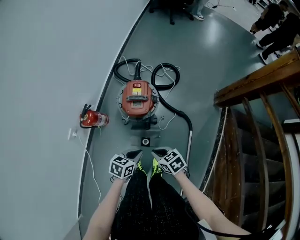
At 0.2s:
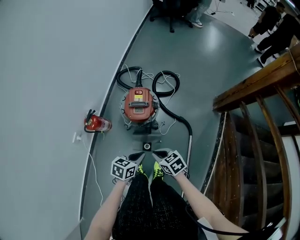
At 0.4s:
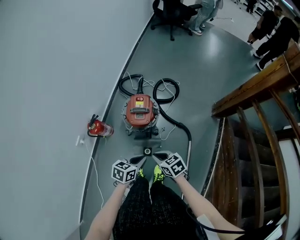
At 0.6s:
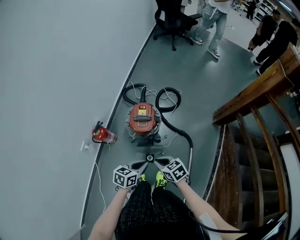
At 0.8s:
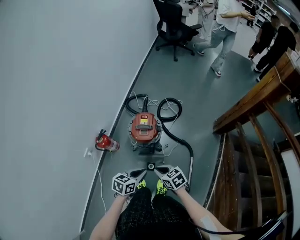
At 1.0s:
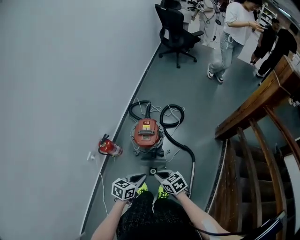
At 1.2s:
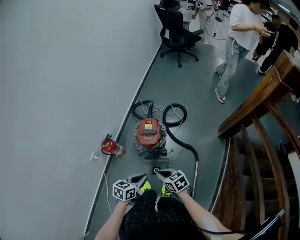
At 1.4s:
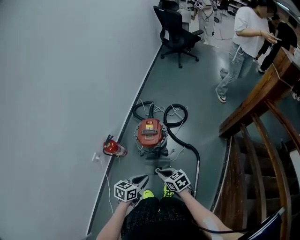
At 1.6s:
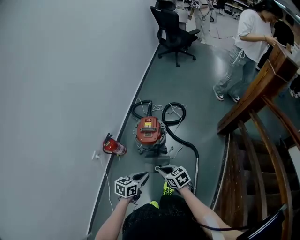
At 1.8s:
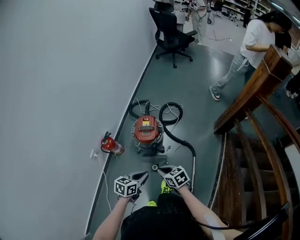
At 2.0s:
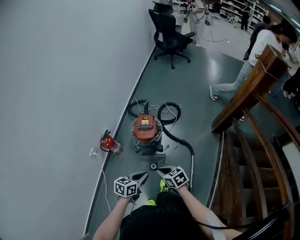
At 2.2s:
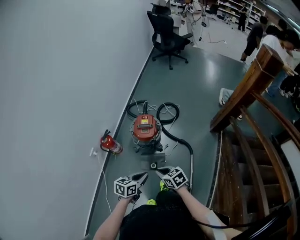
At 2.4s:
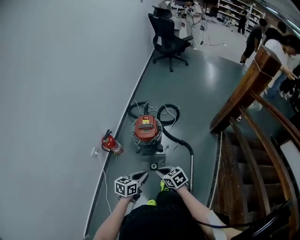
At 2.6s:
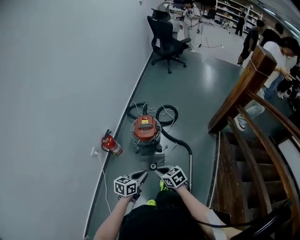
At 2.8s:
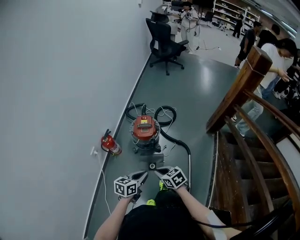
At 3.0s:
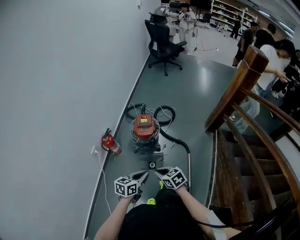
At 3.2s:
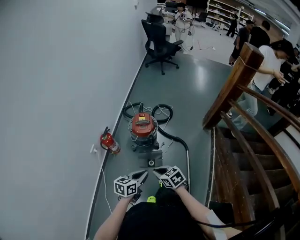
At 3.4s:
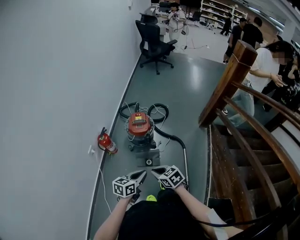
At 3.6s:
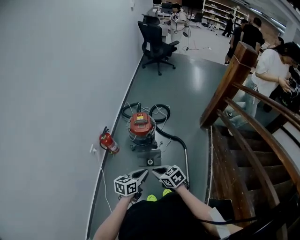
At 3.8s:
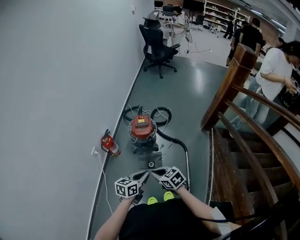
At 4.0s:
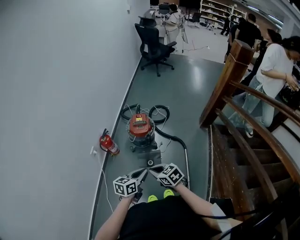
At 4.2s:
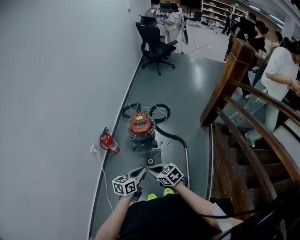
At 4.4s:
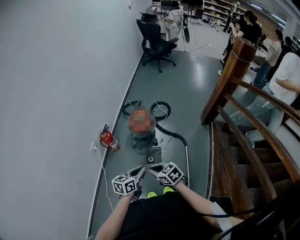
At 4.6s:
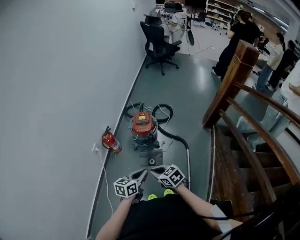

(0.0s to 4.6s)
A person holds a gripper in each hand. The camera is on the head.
0.0s - 1.6s: The grippers both shift upward by some 15 cm.
1.6s - 3.0s: The right gripper is displaced backward and to the left by approximately 15 cm; the left gripper goes some 10 cm backward.
3.0s - 4.6s: The left gripper ends up roughly 5 cm from where it was, while the right gripper is displaced backward by approximately 5 cm.

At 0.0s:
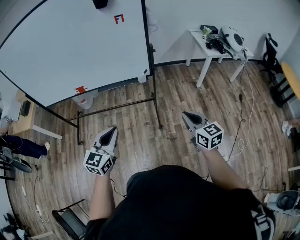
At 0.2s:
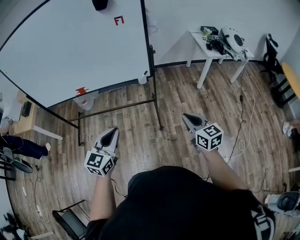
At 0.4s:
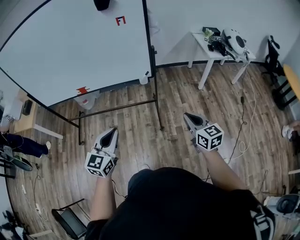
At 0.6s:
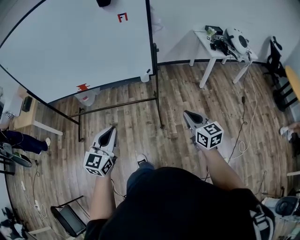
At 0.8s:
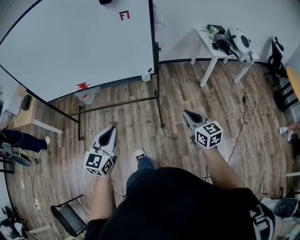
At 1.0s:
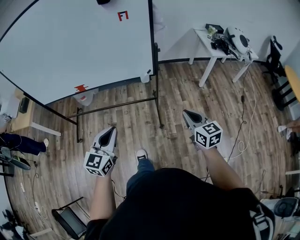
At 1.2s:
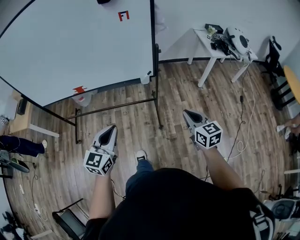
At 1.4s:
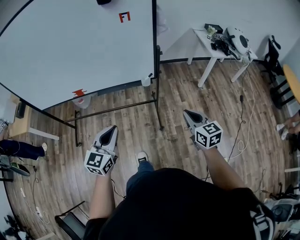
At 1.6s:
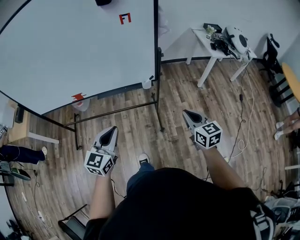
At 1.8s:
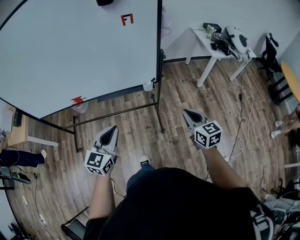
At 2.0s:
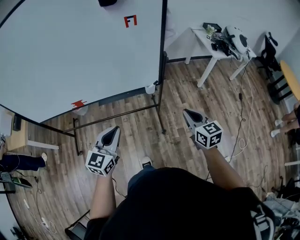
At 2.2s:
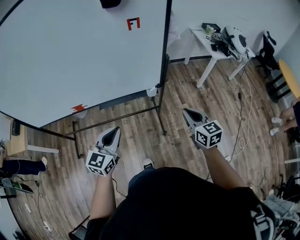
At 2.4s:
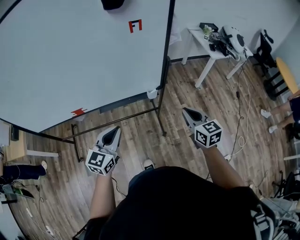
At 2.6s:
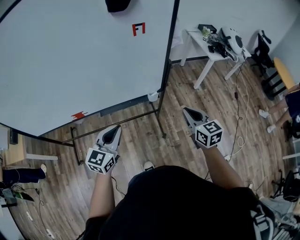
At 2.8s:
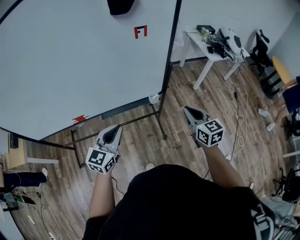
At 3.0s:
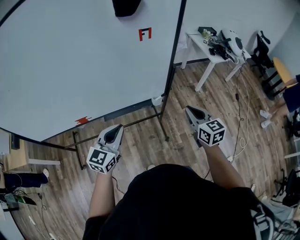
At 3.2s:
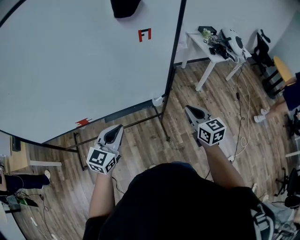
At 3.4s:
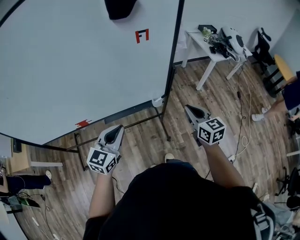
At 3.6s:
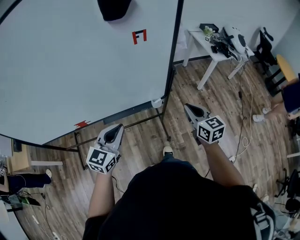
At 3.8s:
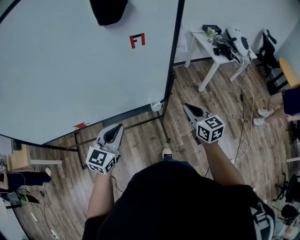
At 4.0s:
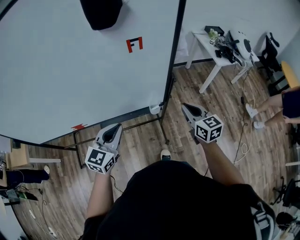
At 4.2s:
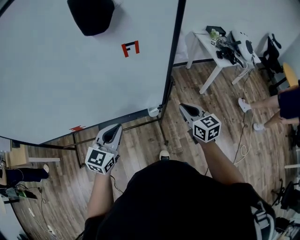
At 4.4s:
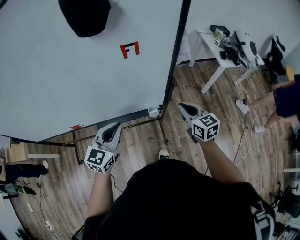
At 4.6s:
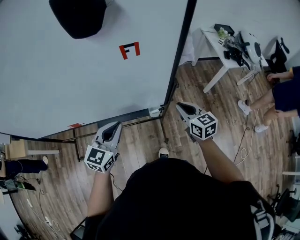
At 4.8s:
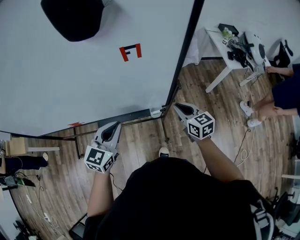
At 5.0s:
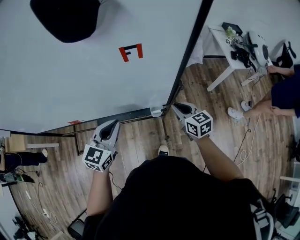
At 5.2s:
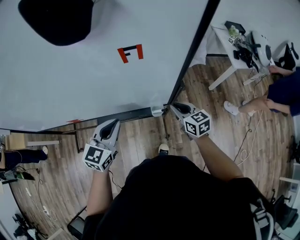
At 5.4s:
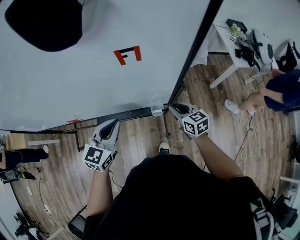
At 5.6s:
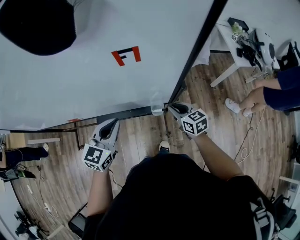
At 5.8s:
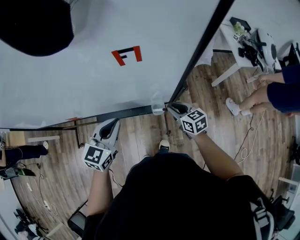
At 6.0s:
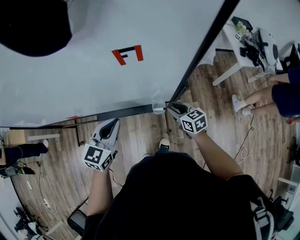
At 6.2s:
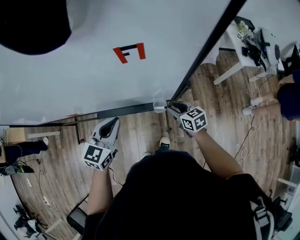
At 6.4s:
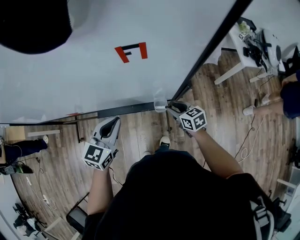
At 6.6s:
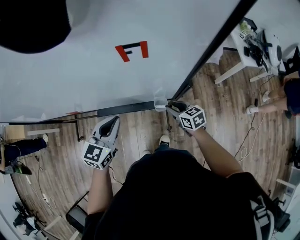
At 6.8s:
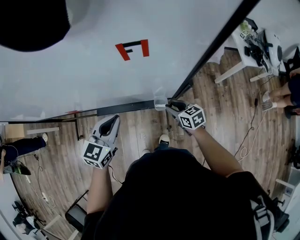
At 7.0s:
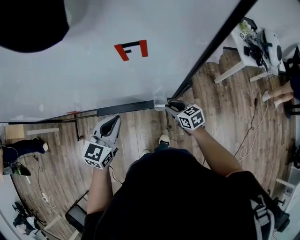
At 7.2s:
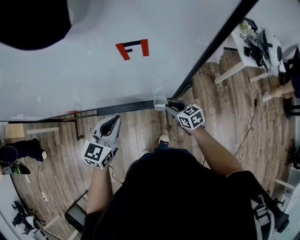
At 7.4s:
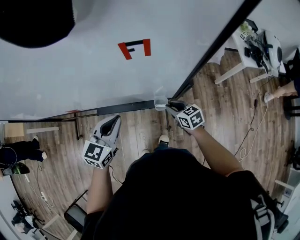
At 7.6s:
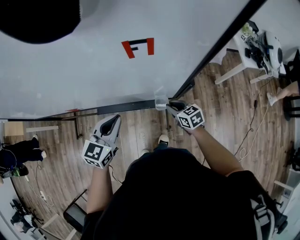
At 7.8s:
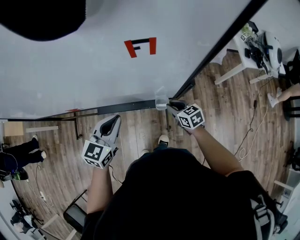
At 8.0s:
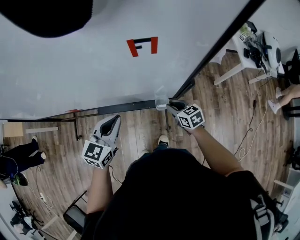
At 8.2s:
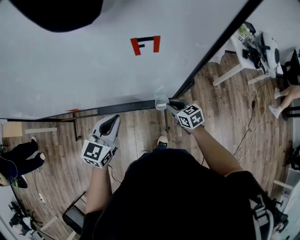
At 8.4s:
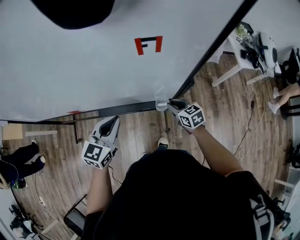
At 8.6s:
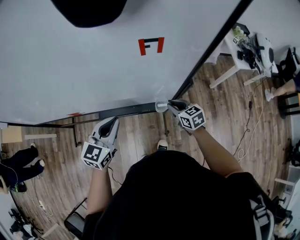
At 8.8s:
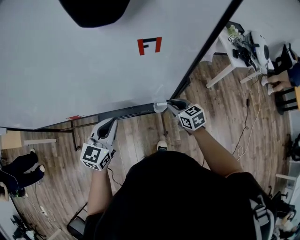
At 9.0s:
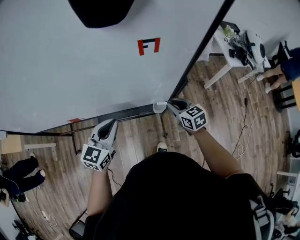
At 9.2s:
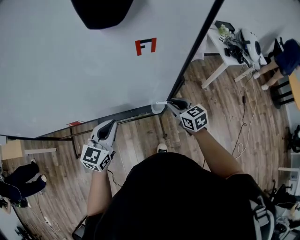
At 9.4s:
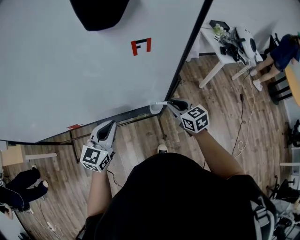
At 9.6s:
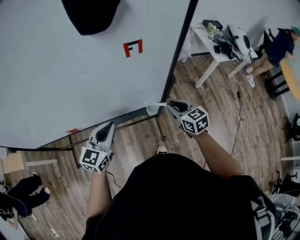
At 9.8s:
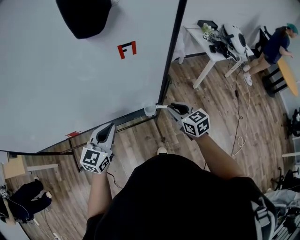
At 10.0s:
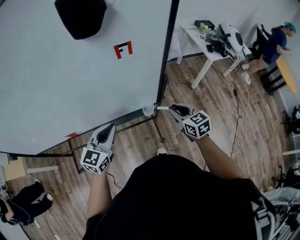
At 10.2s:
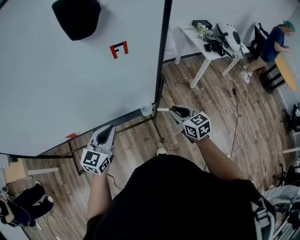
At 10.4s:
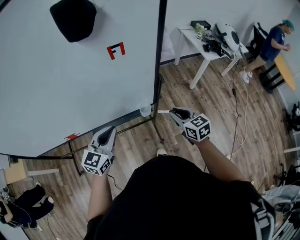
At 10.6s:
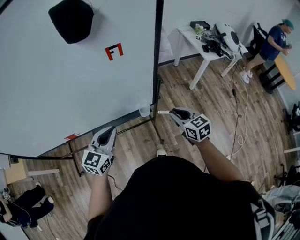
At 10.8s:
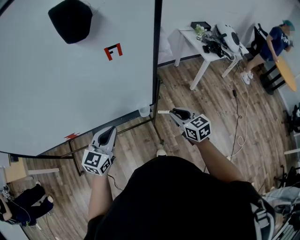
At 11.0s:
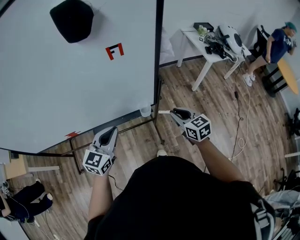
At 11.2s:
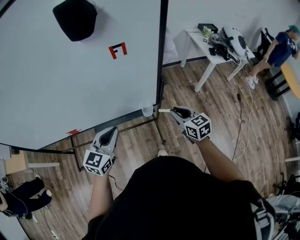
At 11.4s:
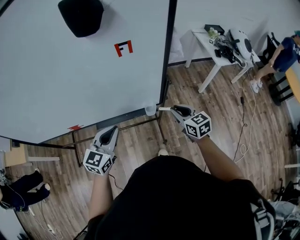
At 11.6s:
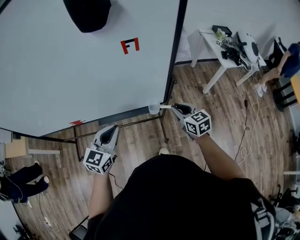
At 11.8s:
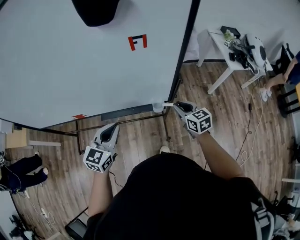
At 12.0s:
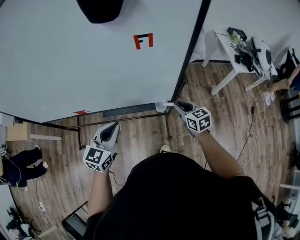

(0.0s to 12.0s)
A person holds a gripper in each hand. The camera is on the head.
0.0s - 1.6s: The left gripper heads forward and to the left, covering about 15 cm, while the right gripper goes some 10 cm forward.
1.6s - 3.0s: The grippers both shift forward and to the left by some 15 cm.
3.0s - 4.4s: The left gripper is displaced forward and to the right by about 15 cm. The right gripper moves forward, some 15 cm.
4.4s - 6.0s: The left gripper heads forward, covering approximately 5 cm, while the right gripper heads downward and forward, covering some 15 cm, turns by some 20 degrees, and opens.
6.0s - 7.6s: The grippers make only small movements.
7.6s - 9.0s: The right gripper heads upward, covering about 10 cm.
9.0s - 10.4s: The right gripper shifts some 15 cm backward, to the right and upward, while the left gripper shifts by roughly 5 cm.
10.4s - 12.0s: The right gripper goes some 10 cm forward and downward.

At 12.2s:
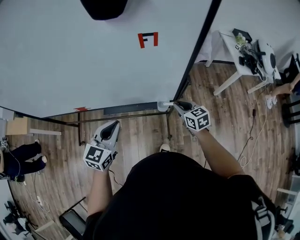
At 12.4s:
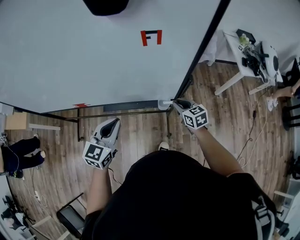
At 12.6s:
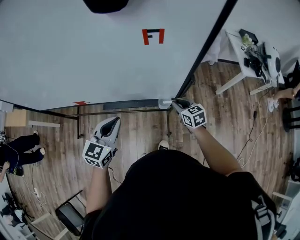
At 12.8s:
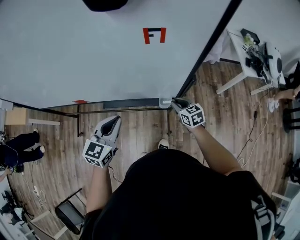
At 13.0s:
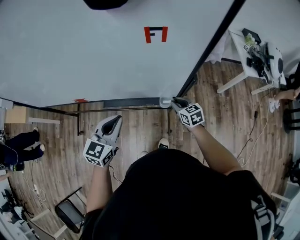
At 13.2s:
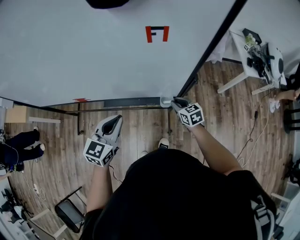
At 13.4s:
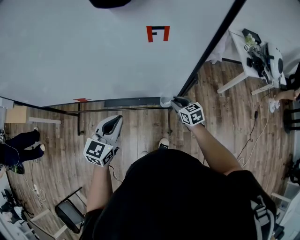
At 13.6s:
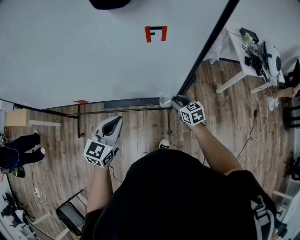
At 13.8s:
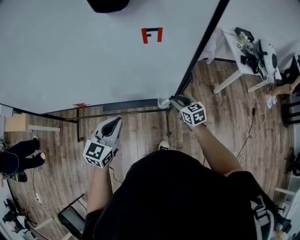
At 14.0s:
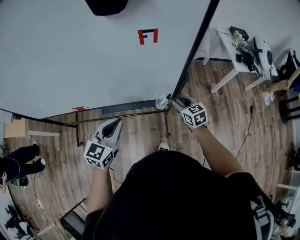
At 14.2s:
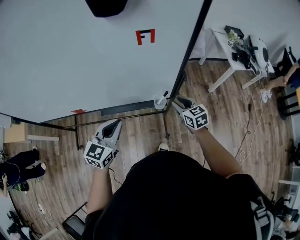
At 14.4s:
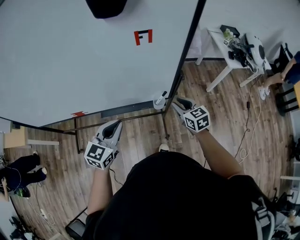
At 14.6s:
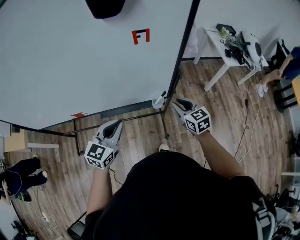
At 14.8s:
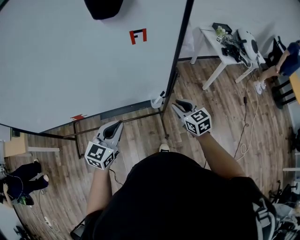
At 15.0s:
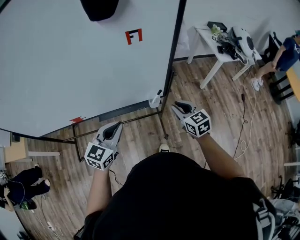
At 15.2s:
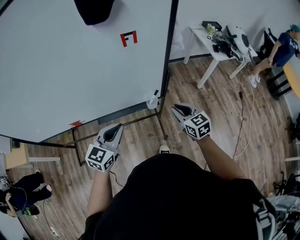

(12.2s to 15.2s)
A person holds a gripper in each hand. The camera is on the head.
13.8s - 15.2s: The right gripper moves backward and upward, roughly 15 cm.

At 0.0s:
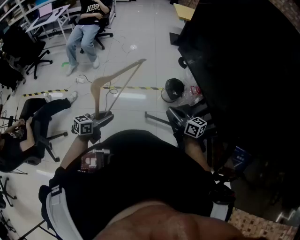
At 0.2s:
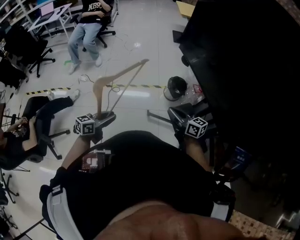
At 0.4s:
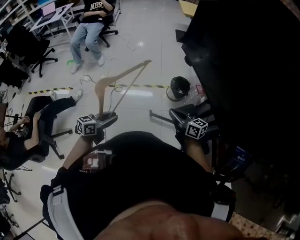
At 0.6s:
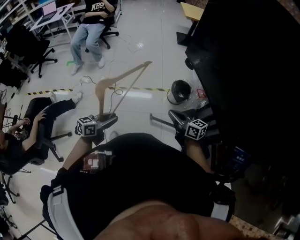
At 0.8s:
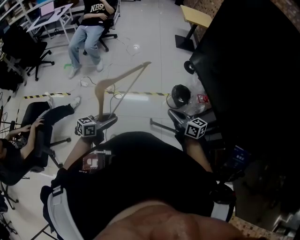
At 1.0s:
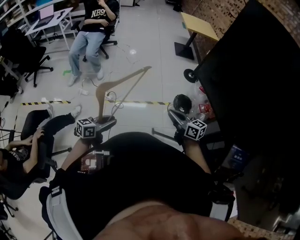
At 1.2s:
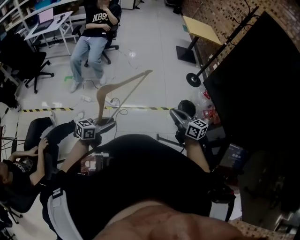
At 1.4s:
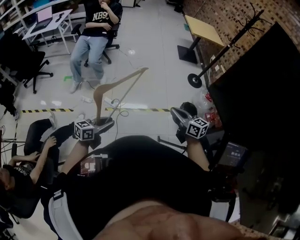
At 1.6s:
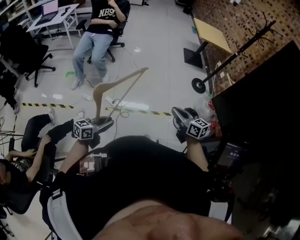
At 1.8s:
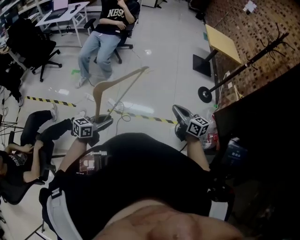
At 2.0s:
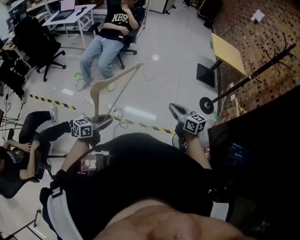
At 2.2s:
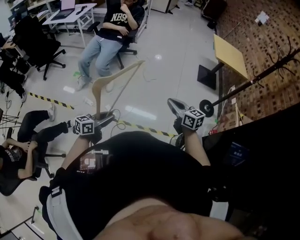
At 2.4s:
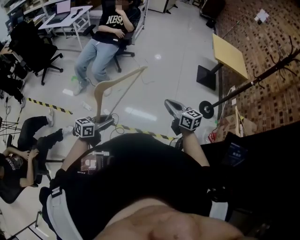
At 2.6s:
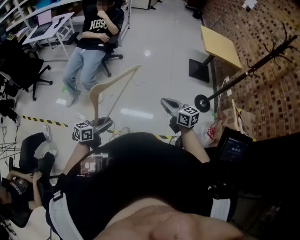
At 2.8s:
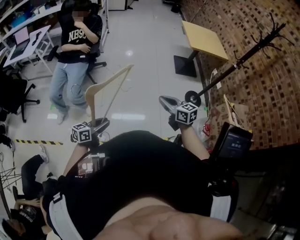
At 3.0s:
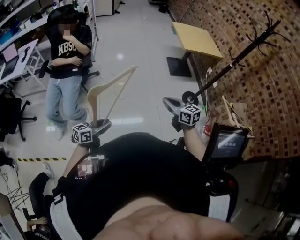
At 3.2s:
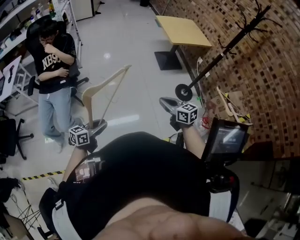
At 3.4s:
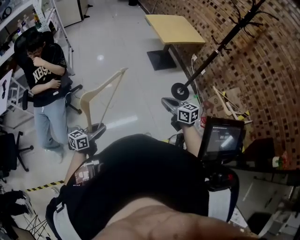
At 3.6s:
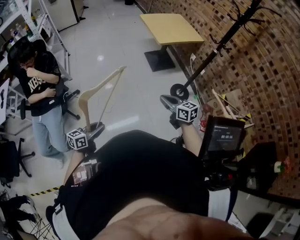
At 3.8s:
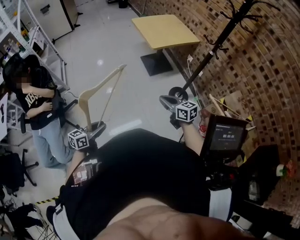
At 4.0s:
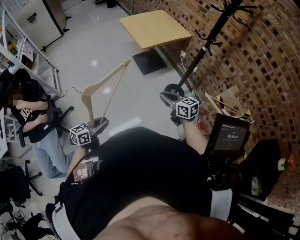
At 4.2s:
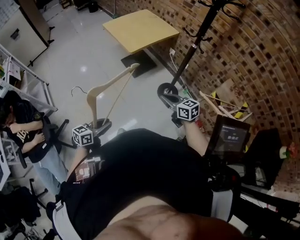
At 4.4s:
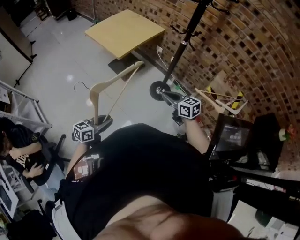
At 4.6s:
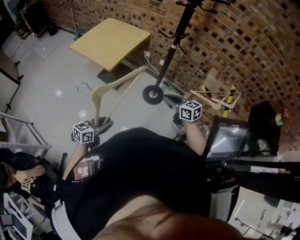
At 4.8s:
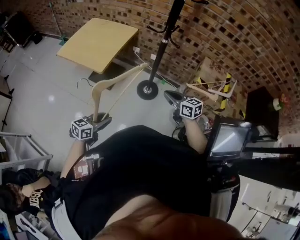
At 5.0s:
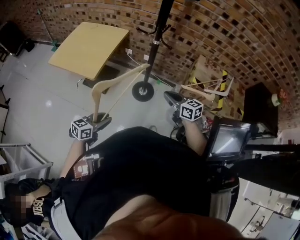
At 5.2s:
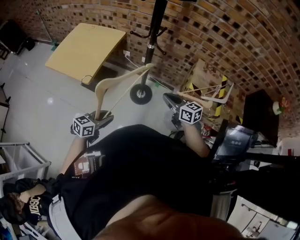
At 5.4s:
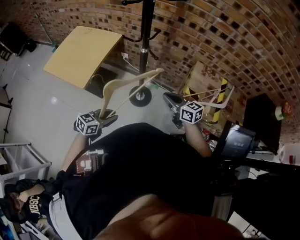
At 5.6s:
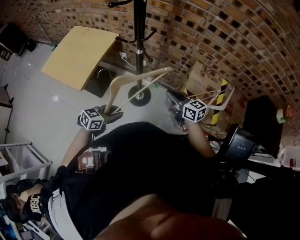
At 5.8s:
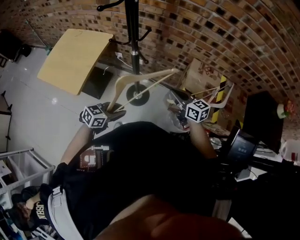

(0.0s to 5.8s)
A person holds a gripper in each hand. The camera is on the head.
0.0s - 1.4s: Both grippers travel together forward and to the left, about 35 cm.
1.4s - 2.8s: The two grippers travel together, forward, roughly 50 cm.
2.8s - 4.4s: The pair of grippers is taken about 50 cm. The right gripper turns by approximately 50 degrees. The left gripper rotates roughly 50 degrees.
4.4s - 5.8s: The left gripper ends up roughly 40 cm from where it was, and changes its angle by some 40 degrees. Meanwhile the right gripper moves about 30 cm, and rotates some 30 degrees.
